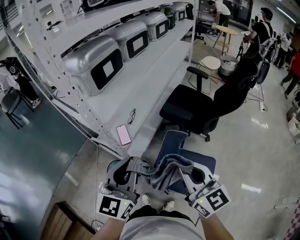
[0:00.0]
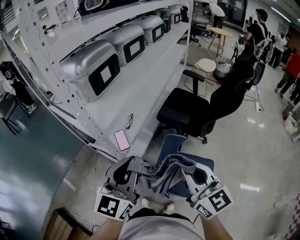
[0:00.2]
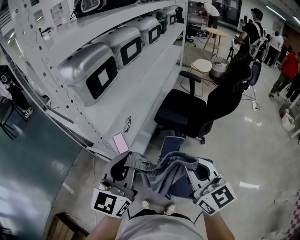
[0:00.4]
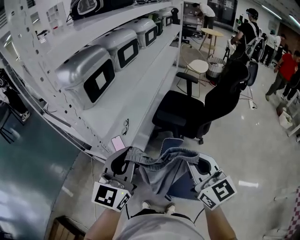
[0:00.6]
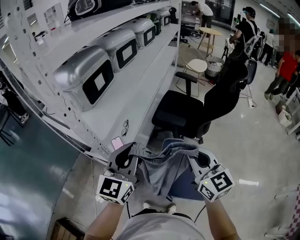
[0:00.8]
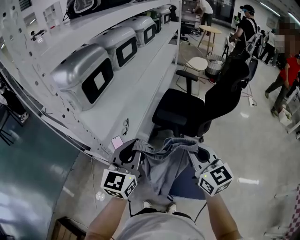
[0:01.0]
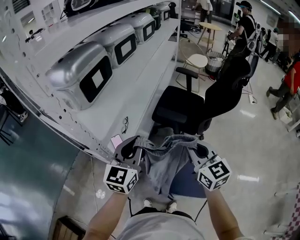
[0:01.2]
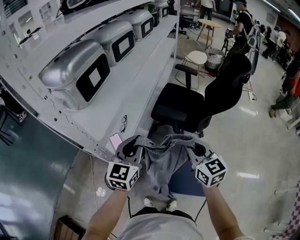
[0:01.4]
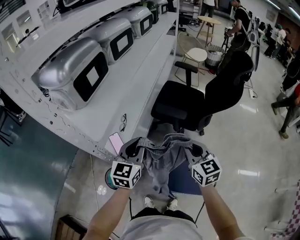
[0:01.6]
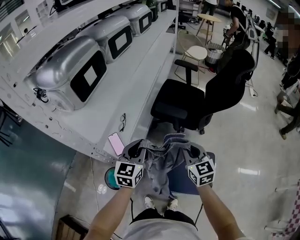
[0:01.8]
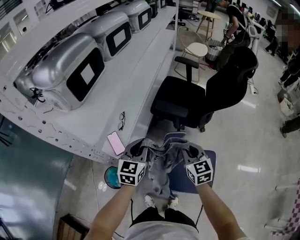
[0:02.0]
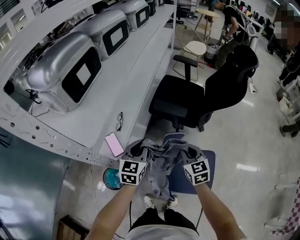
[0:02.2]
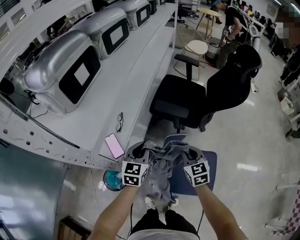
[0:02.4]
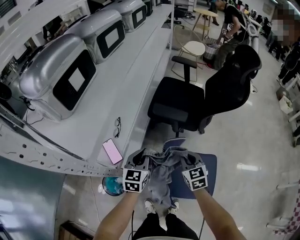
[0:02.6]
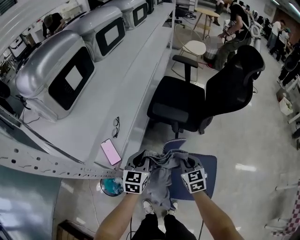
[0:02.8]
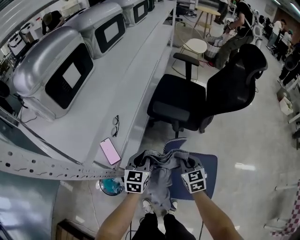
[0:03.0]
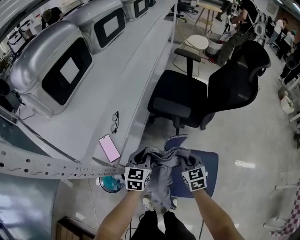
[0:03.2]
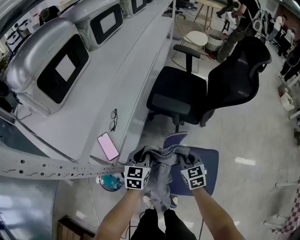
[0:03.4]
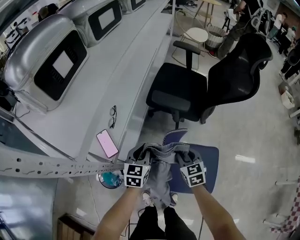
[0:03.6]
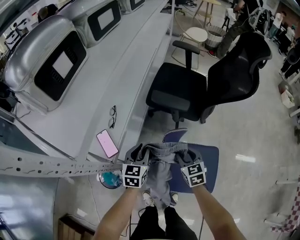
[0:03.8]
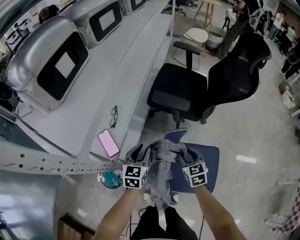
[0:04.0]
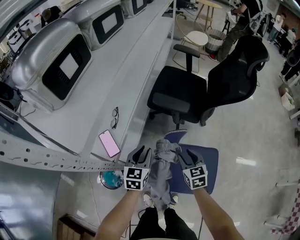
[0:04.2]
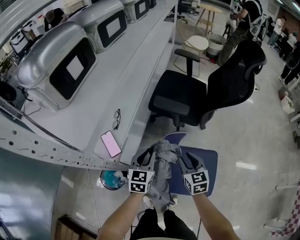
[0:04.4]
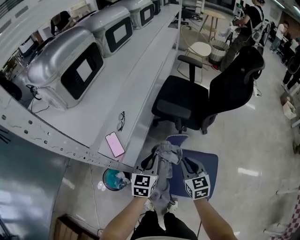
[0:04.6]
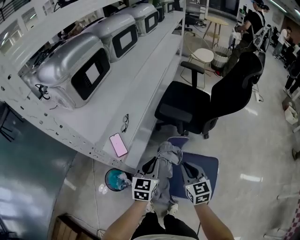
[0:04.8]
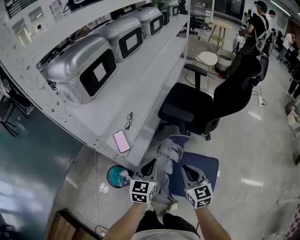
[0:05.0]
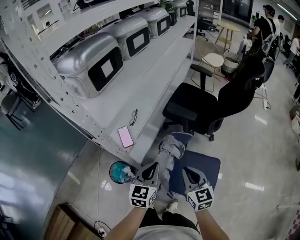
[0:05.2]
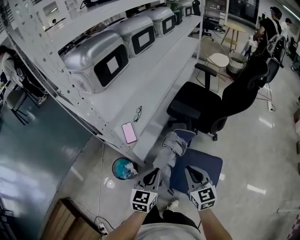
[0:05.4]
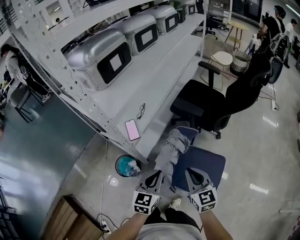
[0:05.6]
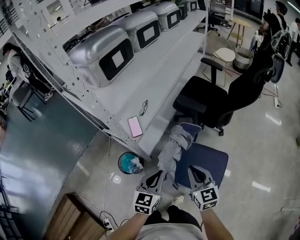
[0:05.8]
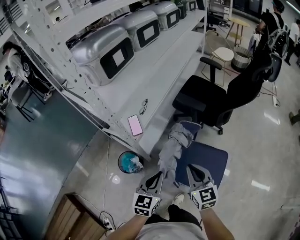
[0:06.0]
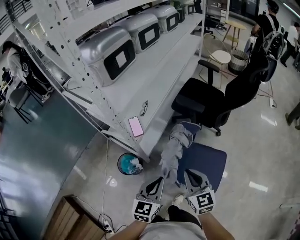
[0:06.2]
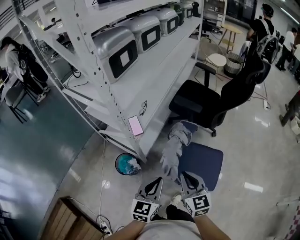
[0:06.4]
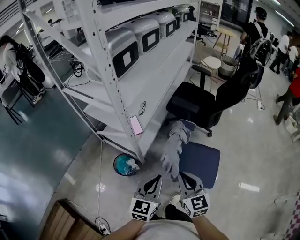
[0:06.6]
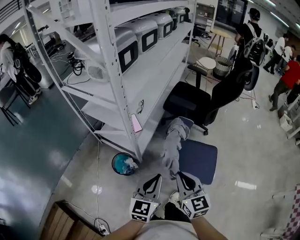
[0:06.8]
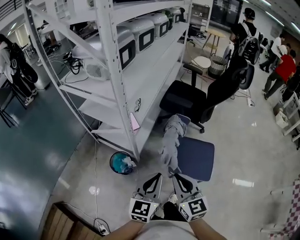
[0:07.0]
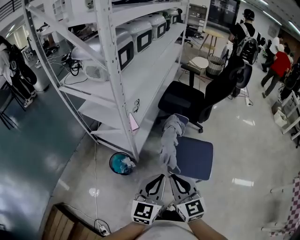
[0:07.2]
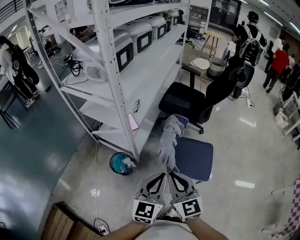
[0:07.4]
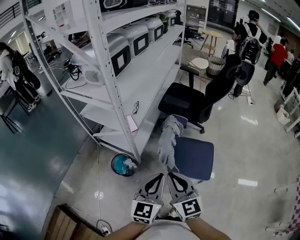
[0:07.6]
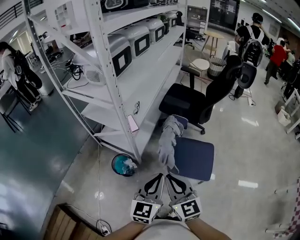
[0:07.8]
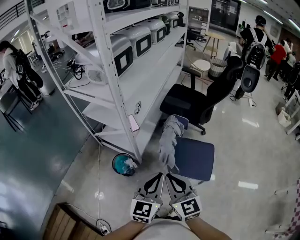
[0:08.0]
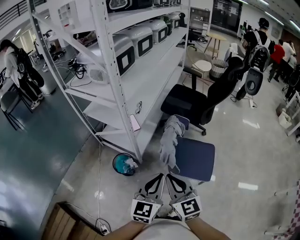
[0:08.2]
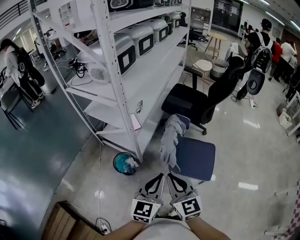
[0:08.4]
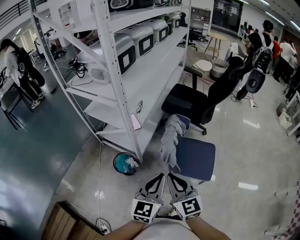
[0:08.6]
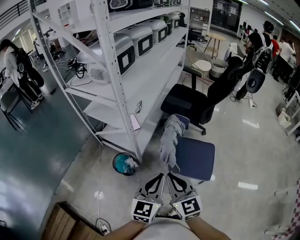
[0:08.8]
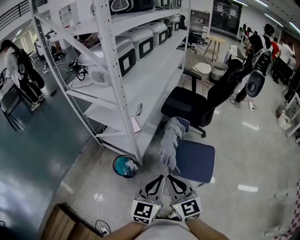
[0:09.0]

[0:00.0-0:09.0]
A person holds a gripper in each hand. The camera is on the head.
0:00.0 to 0:01.6: The grippers both shift forward and downward by roughly 20 cm. The right gripper changes its angle by roughly 20 degrees.
0:01.6 to 0:03.0: The two grippers go about 20 cm downward. The right gripper swivels approximately 20 degrees.
0:03.0 to 0:04.4: The right gripper opens.
0:04.4 to 0:06.0: The grippers both shift backward and upward by about 25 cm. The right gripper turns by some 20 degrees, and closes.
0:06.0 to 0:07.6: The left gripper moves backward and upward, some 20 cm. The right gripper heads backward, to the left and upward, covering roughly 25 cm.
0:07.6 to 0:09.0: The grippers stay close to where they were, moving slightly.

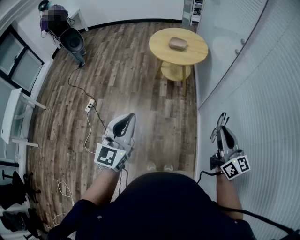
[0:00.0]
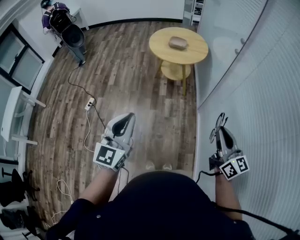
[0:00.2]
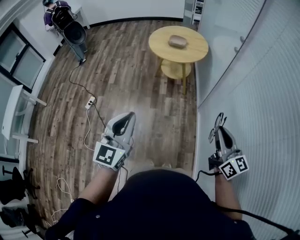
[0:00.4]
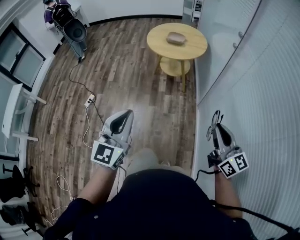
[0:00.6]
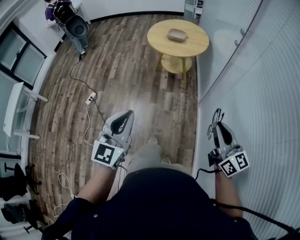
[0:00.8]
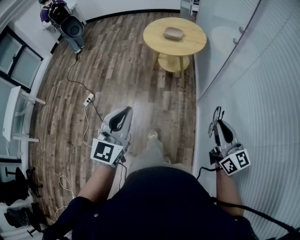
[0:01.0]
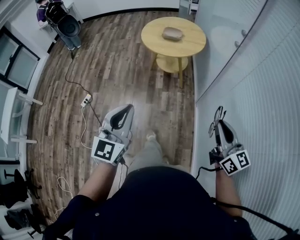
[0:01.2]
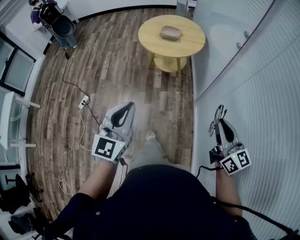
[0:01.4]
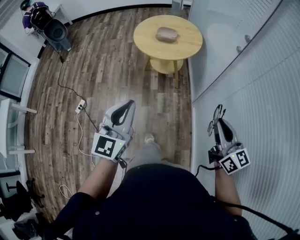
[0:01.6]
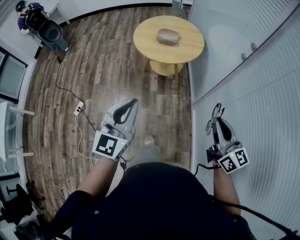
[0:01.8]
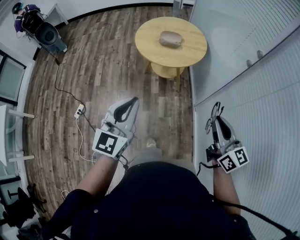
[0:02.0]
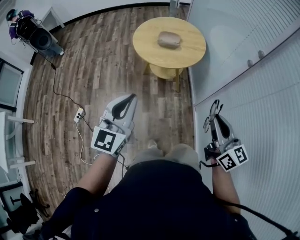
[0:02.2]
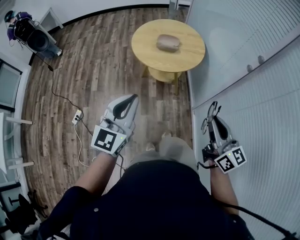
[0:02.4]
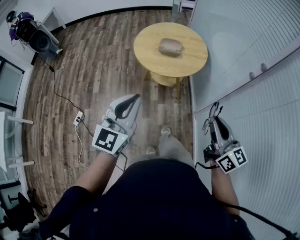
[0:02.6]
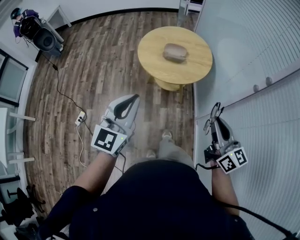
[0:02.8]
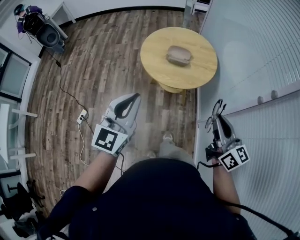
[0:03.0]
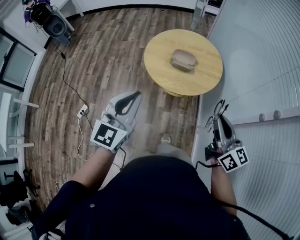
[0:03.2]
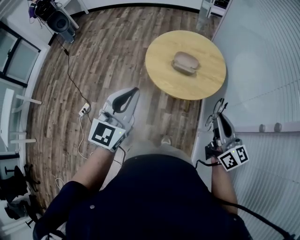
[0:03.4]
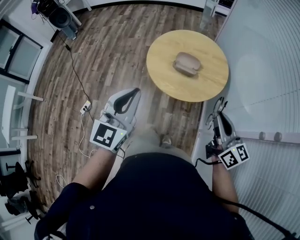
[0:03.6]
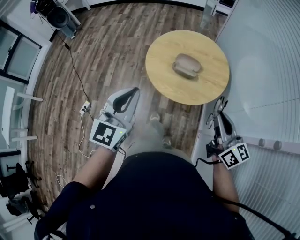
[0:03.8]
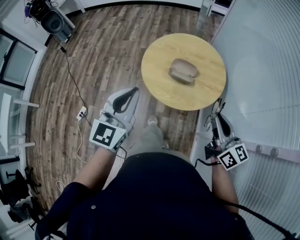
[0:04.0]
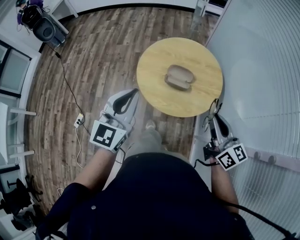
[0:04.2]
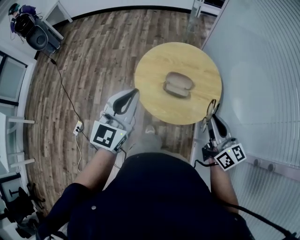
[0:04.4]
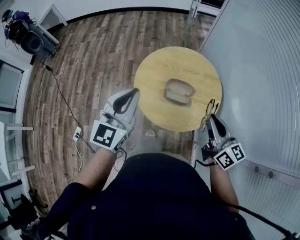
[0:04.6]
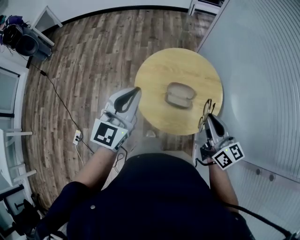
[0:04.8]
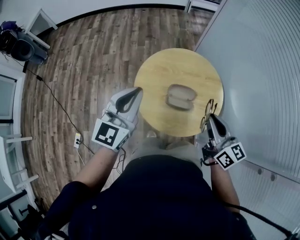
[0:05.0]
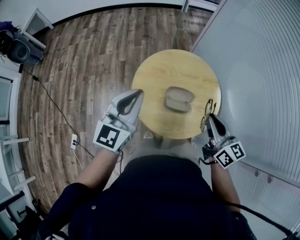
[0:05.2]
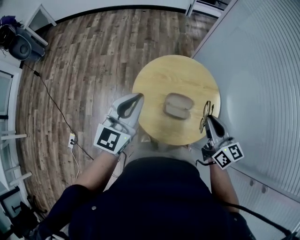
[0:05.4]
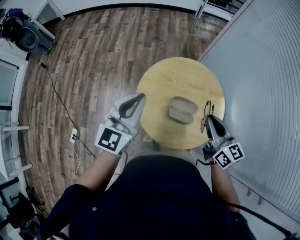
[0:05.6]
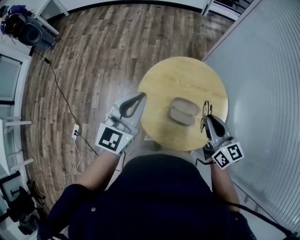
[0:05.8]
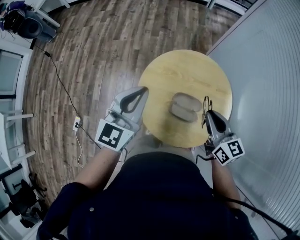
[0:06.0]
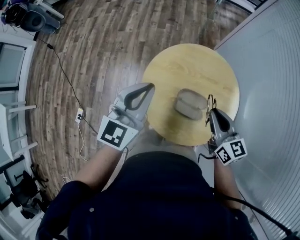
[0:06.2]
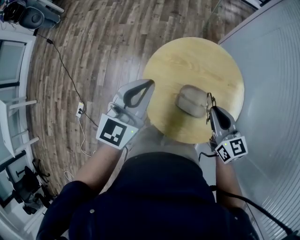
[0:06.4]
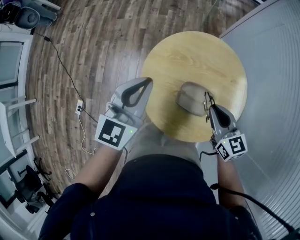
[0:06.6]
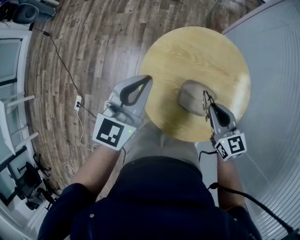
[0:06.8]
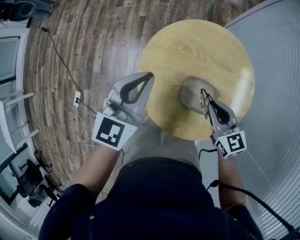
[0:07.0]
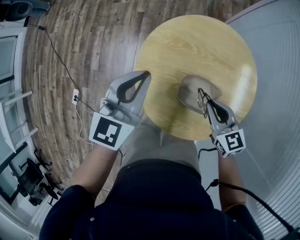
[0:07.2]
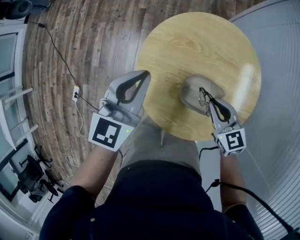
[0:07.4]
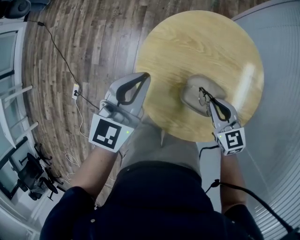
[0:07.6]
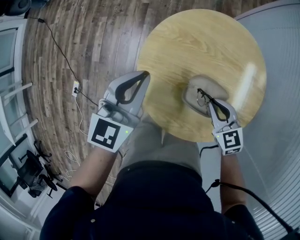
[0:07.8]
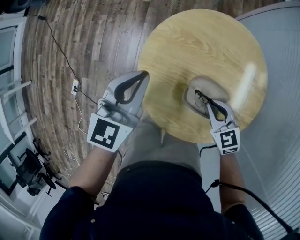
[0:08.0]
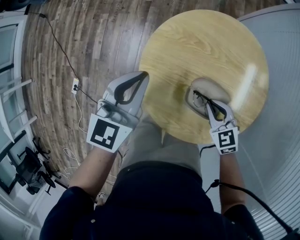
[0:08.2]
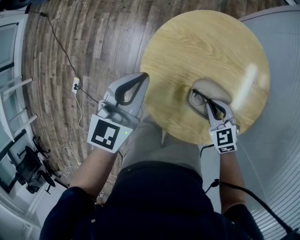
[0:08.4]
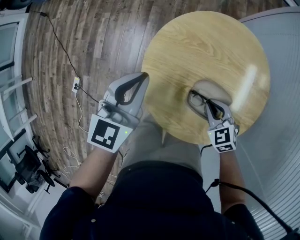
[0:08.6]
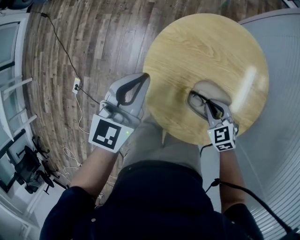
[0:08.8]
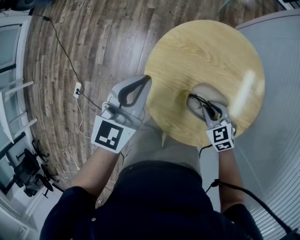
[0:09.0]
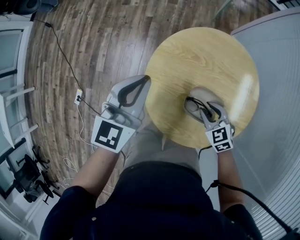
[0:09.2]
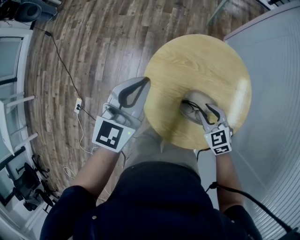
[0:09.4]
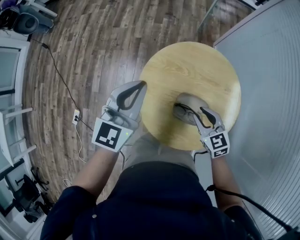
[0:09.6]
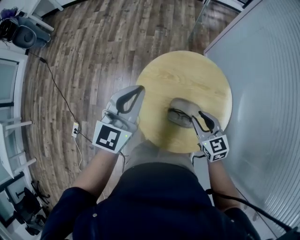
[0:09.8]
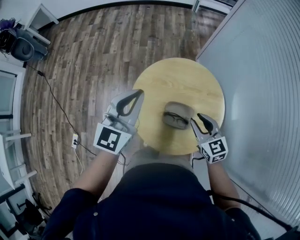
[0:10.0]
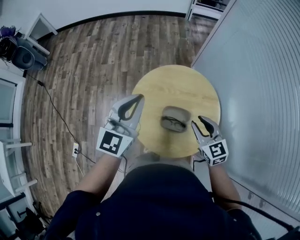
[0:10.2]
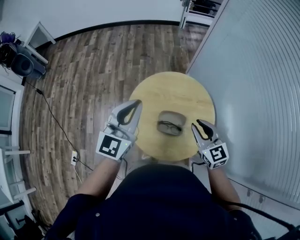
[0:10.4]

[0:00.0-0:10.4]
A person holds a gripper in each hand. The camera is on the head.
0:00.0 to 0:01.4: The left gripper is displaced forward and to the right by some 15 cm. The right gripper is displaced forward by roughly 10 cm.
0:01.4 to 0:03.0: Both grippers travel together forward, roughly 30 cm.
0:03.0 to 0:04.4: Both grippers move forward, approximately 30 cm.
0:04.4 to 0:06.0: Both grippers move forward, approximately 20 cm.
0:06.0 to 0:07.4: The two grippers go roughly 20 cm downward. The right gripper changes its angle by about 30 degrees.
0:07.4 to 0:09.0: The right gripper heads downward, covering about 10 cm, and swivels approximately 20 degrees.
0:09.0 to 0:10.4: The grippers both shift upward by approximately 25 cm. The left gripper changes its angle by about 20 degrees, while the right gripper points its fingers about 30 degrees further upward.

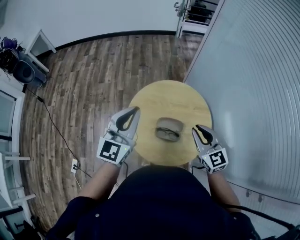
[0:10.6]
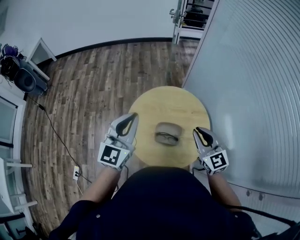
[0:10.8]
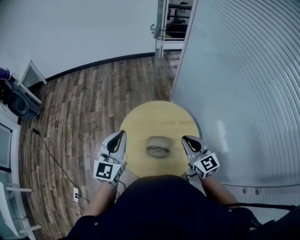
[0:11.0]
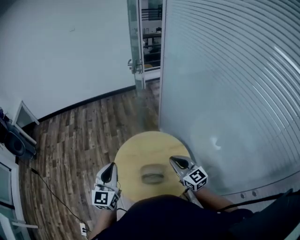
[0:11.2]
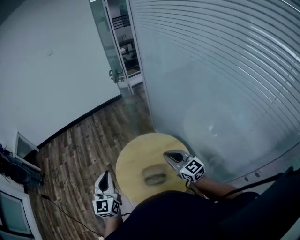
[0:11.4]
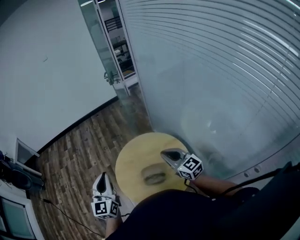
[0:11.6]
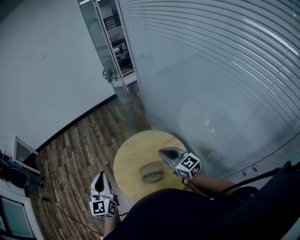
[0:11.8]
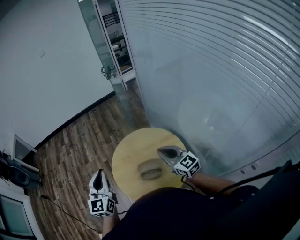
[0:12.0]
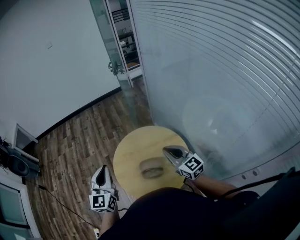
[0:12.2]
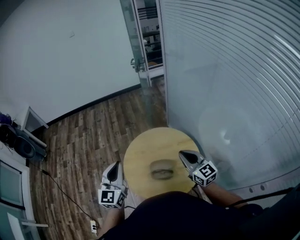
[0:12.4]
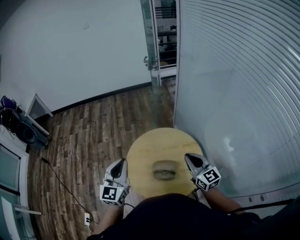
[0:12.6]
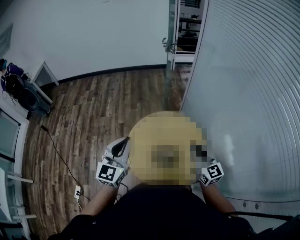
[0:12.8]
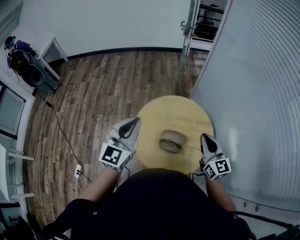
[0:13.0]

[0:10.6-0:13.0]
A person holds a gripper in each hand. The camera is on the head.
0:10.6 to 0:13.0: The grippers stay close to where they were, moving slightly.

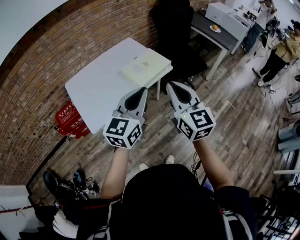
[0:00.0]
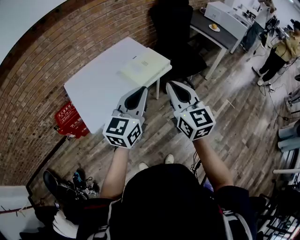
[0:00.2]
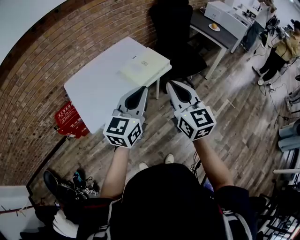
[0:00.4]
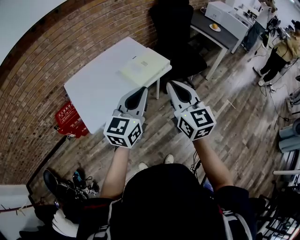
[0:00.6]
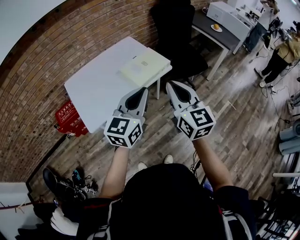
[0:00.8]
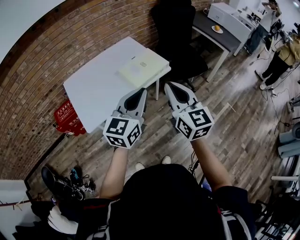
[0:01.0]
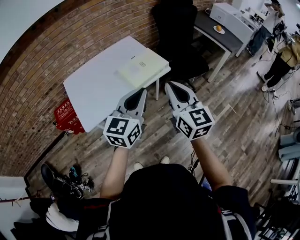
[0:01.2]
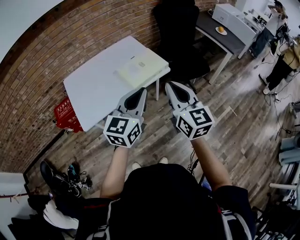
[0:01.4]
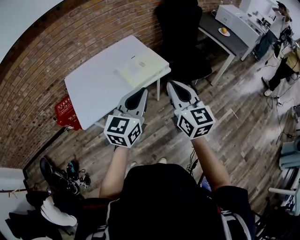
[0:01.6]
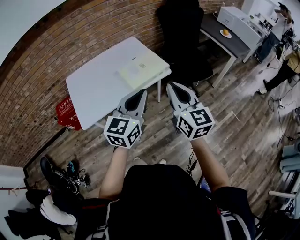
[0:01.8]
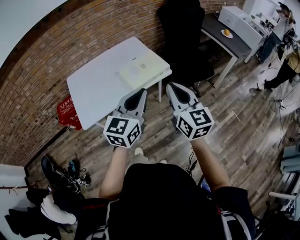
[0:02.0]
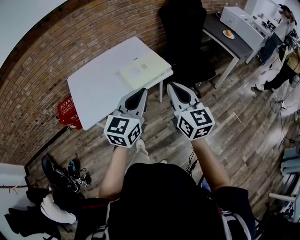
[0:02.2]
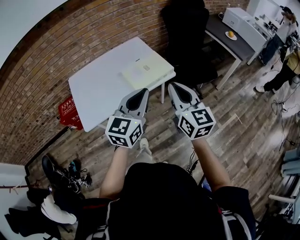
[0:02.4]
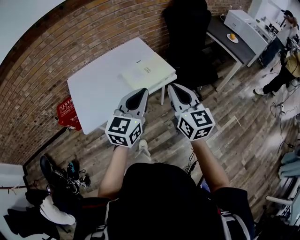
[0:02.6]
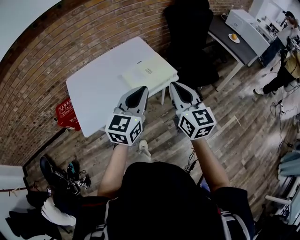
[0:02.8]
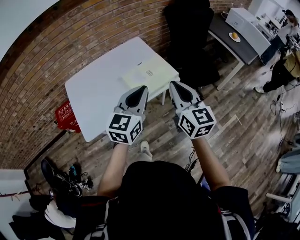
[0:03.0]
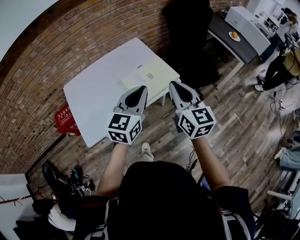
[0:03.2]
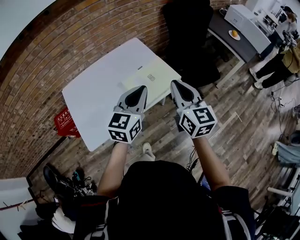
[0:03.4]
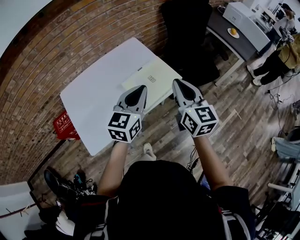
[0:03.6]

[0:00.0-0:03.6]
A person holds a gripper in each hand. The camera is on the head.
0:00.0 to 0:01.8: The left gripper moves to the right, roughly 10 cm, while the right gripper is displaced to the right and forward by about 10 cm.
0:01.8 to 0:03.6: The left gripper heads forward and to the left, covering about 25 cm. The right gripper goes some 20 cm forward.
